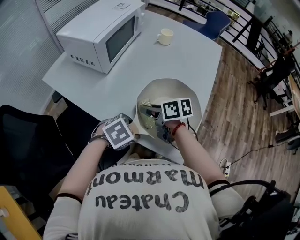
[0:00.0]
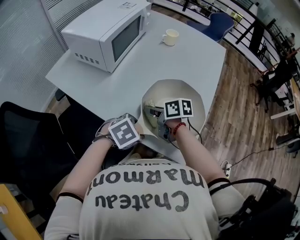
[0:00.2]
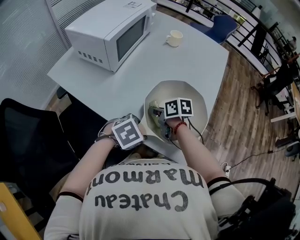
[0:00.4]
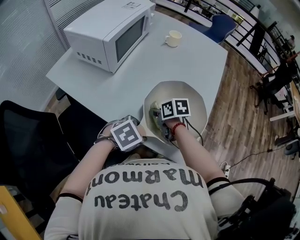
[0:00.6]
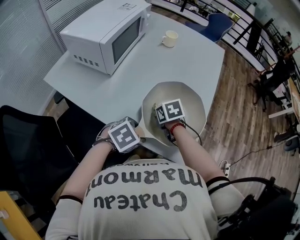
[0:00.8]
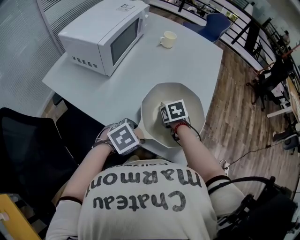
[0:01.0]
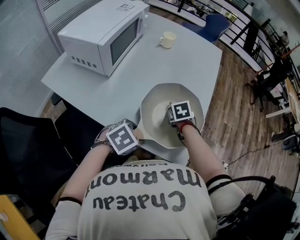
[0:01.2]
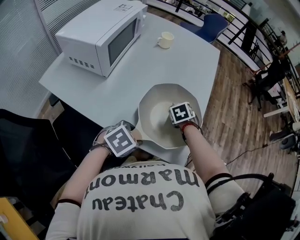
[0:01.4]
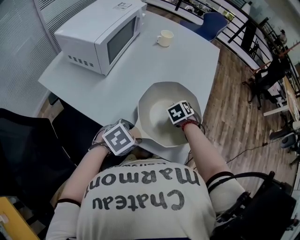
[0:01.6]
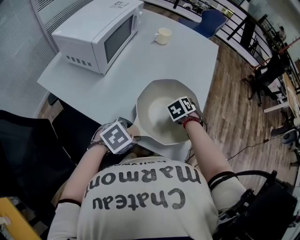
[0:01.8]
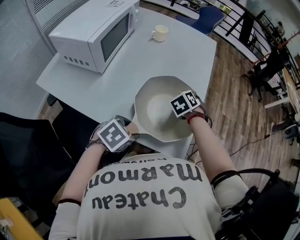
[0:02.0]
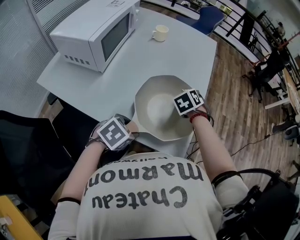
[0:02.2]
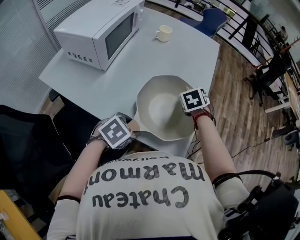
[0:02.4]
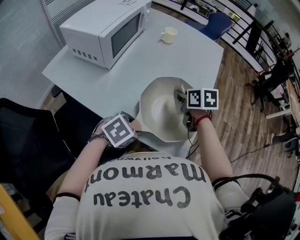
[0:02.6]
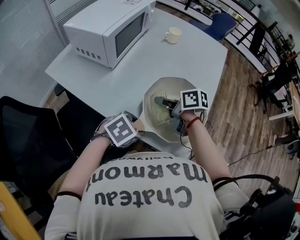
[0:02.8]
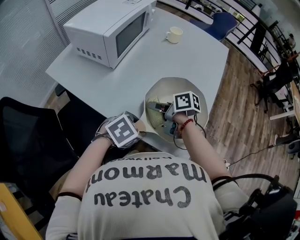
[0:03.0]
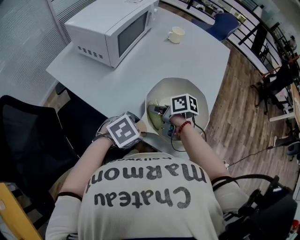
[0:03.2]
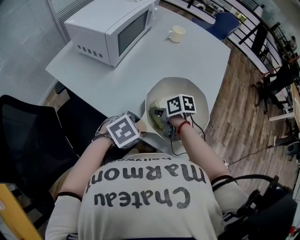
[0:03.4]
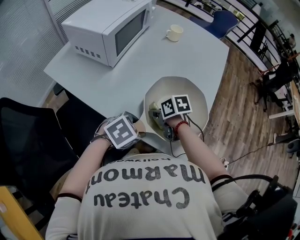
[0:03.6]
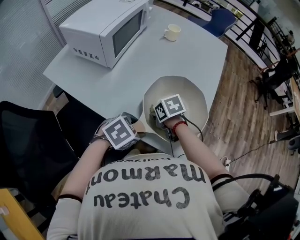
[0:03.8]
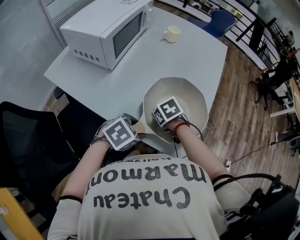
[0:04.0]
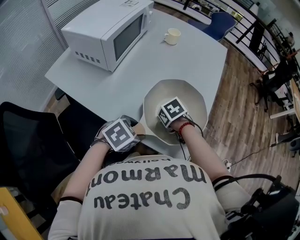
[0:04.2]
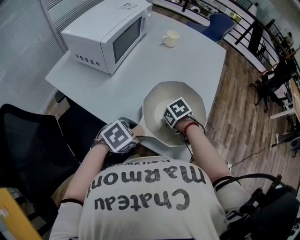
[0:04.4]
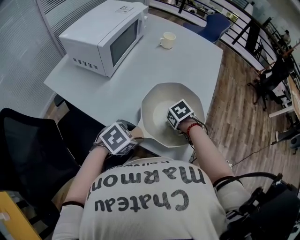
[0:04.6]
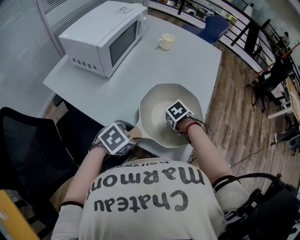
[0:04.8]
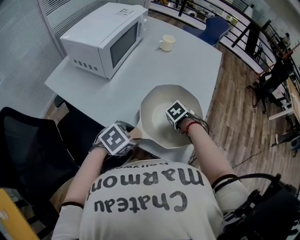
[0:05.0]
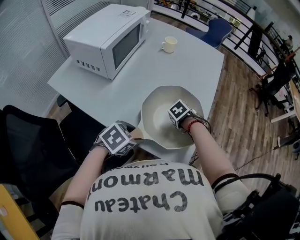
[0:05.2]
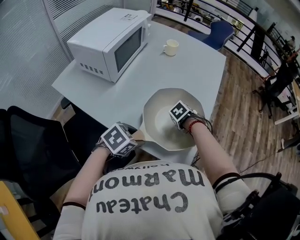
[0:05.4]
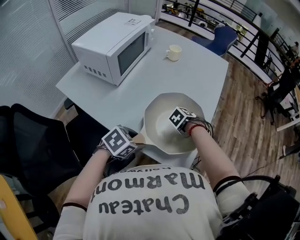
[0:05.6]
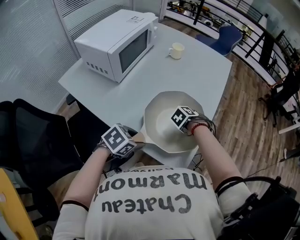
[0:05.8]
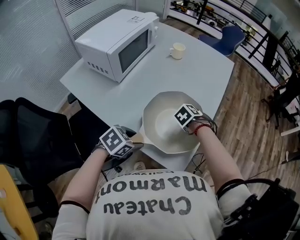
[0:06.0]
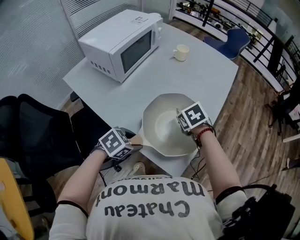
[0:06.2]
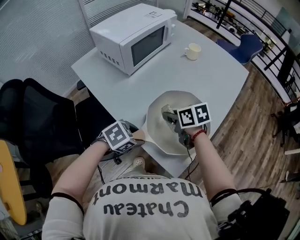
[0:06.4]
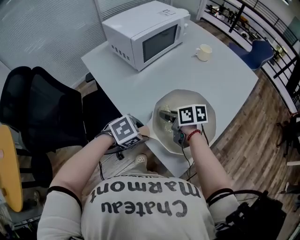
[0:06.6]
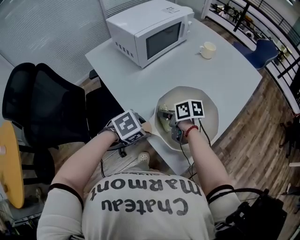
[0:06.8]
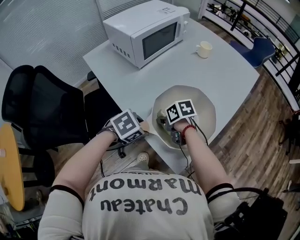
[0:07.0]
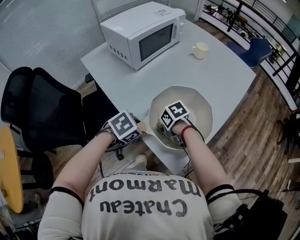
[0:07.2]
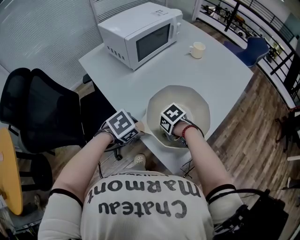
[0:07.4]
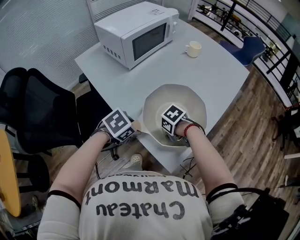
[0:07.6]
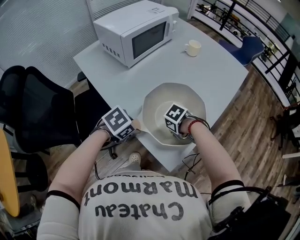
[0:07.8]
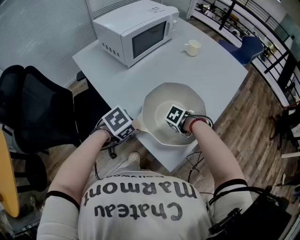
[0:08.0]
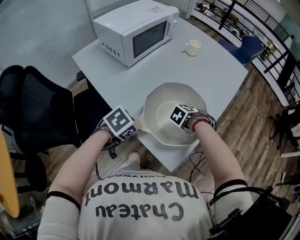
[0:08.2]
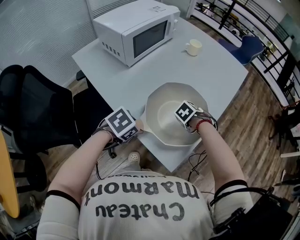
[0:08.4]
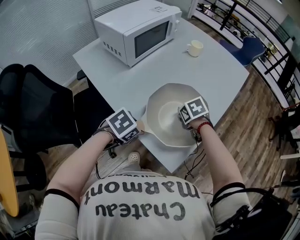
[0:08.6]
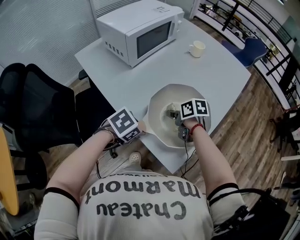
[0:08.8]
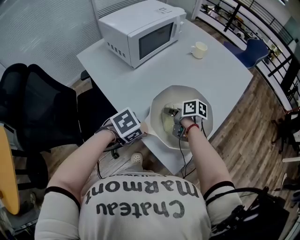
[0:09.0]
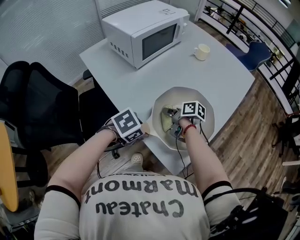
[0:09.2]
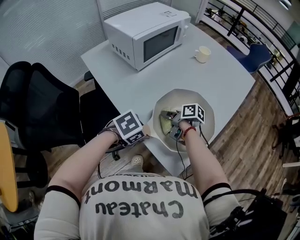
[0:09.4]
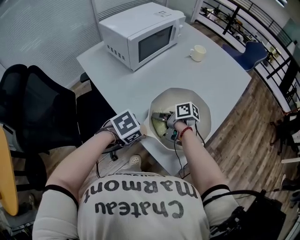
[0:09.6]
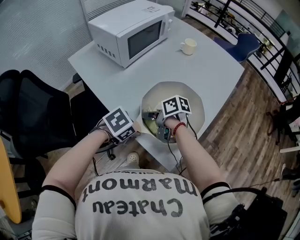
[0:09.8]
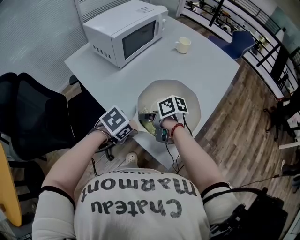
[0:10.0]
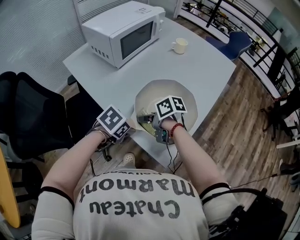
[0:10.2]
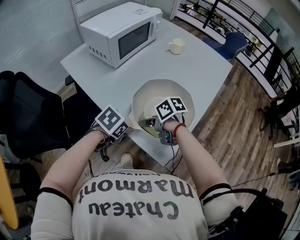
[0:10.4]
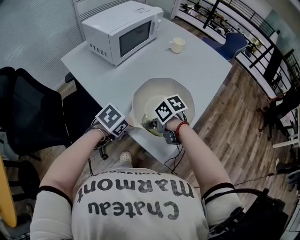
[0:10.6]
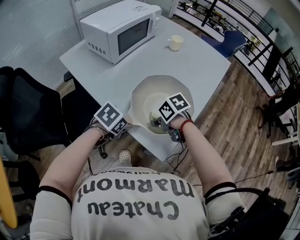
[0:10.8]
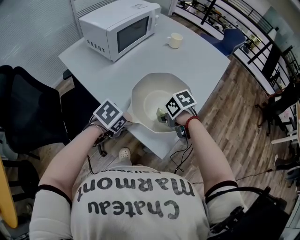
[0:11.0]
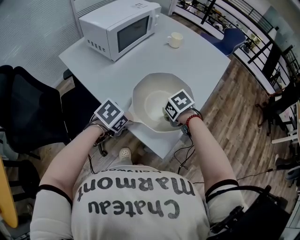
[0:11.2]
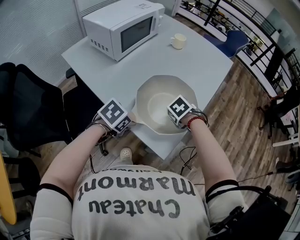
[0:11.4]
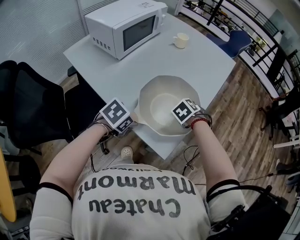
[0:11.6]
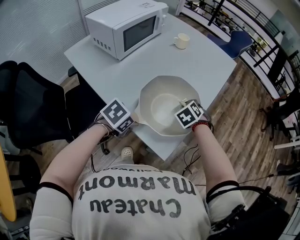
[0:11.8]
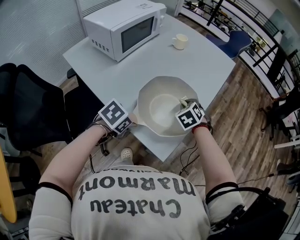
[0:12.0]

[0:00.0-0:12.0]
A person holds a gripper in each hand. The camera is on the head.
0:00.0 to 0:01.6: The right gripper changes place by about 20 cm, and points its fingers approximately 40 degrees further downward.
0:01.6 to 0:03.0: The right gripper ends up approximately 20 cm from where it was, and angles its fingers upward, by about 40 degrees.
0:03.0 to 0:04.4: The right gripper ends up some 15 cm from where it was, and tilts its fingers roughly 50 degrees downward.
0:04.4 to 0:06.0: The right gripper moves some 15 cm, and turns by some 30 degrees.
0:06.0 to 0:07.6: The right gripper moves about 5 cm upward and comes back, and rotates roughly 40 degrees.
0:07.6 to 0:09.0: The right gripper changes place by roughly 15 cm, and angles its fingers upward, by roughly 40 degrees.
0:09.0 to 0:10.4: The right gripper moves roughly 15 cm, and rotates approximately 20 degrees.
0:10.4 to 0:12.0: The right gripper changes place by about 20 cm, and swivels roughly 80 degrees.

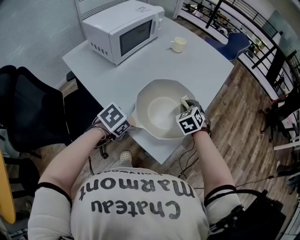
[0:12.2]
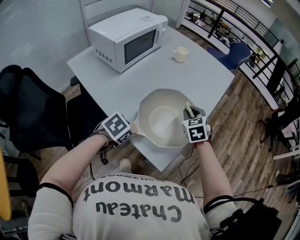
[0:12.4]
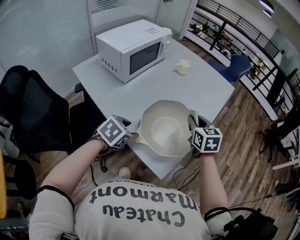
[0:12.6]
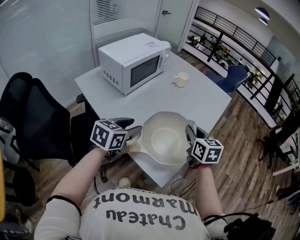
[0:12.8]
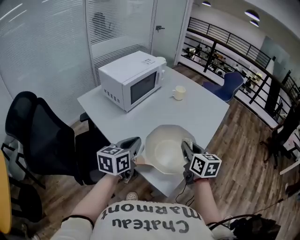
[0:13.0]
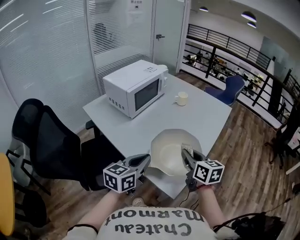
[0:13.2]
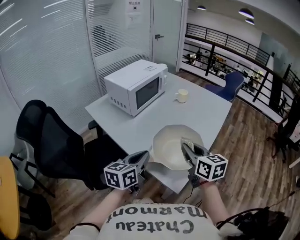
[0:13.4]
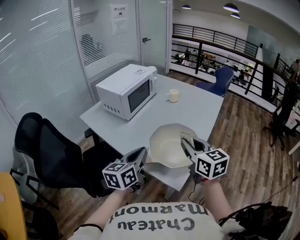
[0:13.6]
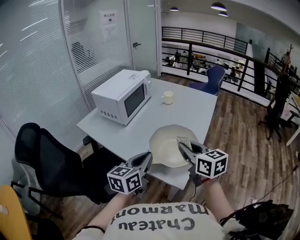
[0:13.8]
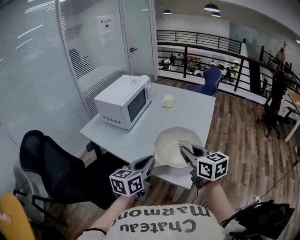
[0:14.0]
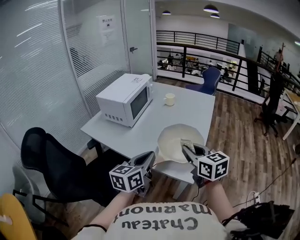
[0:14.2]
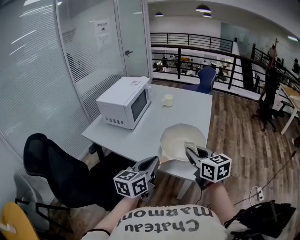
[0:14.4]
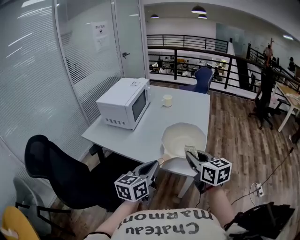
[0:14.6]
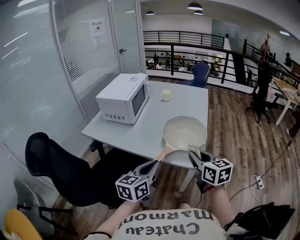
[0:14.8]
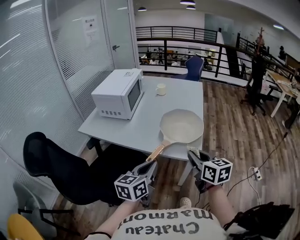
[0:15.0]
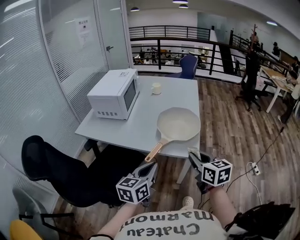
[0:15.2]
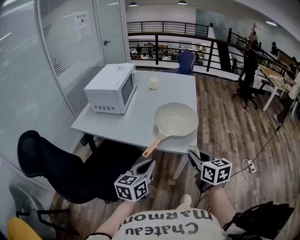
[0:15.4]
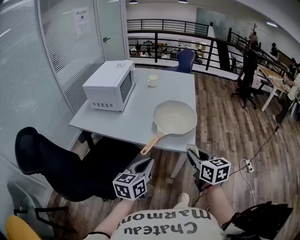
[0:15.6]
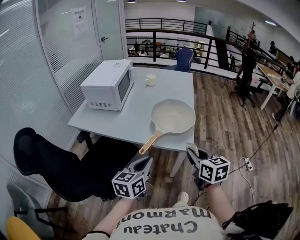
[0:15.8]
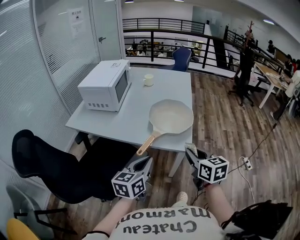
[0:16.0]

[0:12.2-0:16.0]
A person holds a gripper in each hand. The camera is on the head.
0:12.2 to 0:13.4: Both grippers travel together upward, some 15 cm. The left gripper tilts its fingers roughly 50 degrees upward, and closes; the right gripper tips its fingers upward by roughly 30 degrees.
0:13.4 to 0:14.8: The right gripper shifts approximately 15 cm backward, and rotates some 20 degrees. Meanwhile the left gripper heads backward and to the left, covering about 15 cm, and rotates approximately 20 degrees.
0:14.8 to 0:16.0: The left gripper moves roughly 5 cm. The right gripper is displaced backward by about 5 cm.

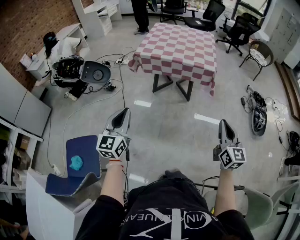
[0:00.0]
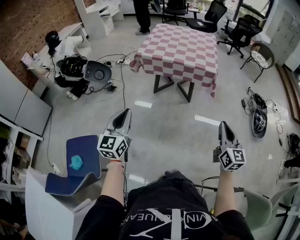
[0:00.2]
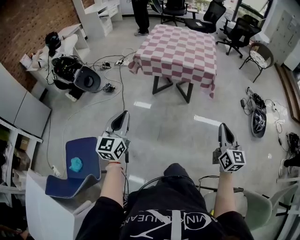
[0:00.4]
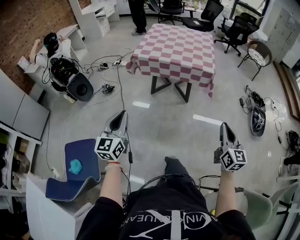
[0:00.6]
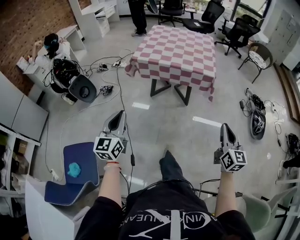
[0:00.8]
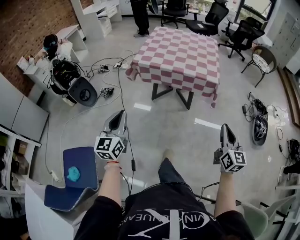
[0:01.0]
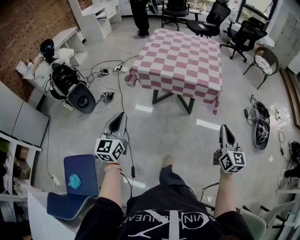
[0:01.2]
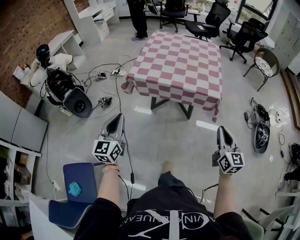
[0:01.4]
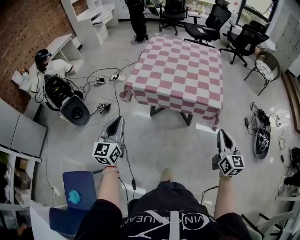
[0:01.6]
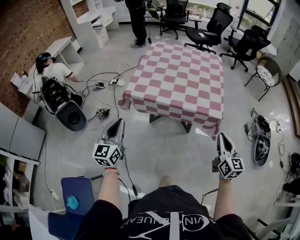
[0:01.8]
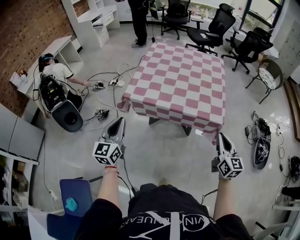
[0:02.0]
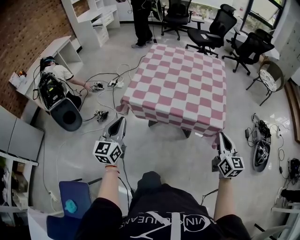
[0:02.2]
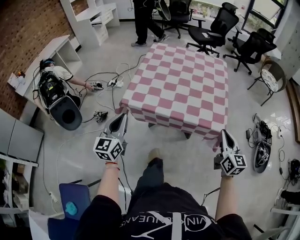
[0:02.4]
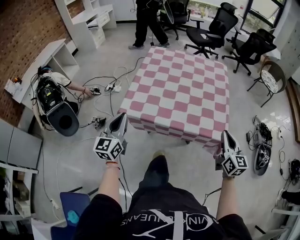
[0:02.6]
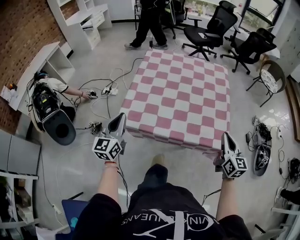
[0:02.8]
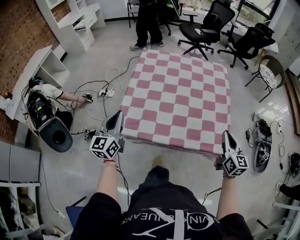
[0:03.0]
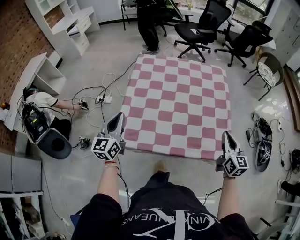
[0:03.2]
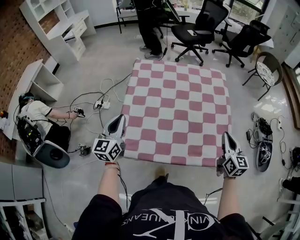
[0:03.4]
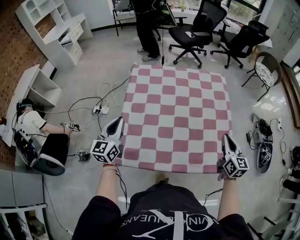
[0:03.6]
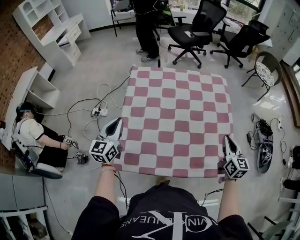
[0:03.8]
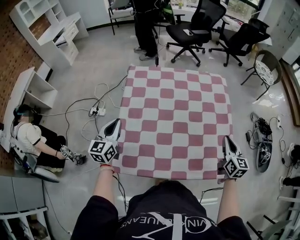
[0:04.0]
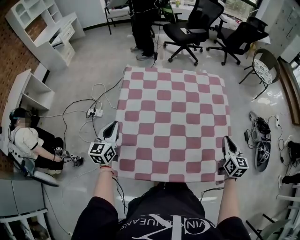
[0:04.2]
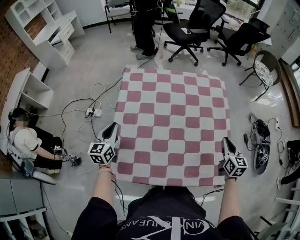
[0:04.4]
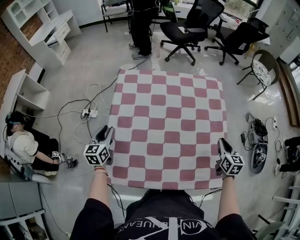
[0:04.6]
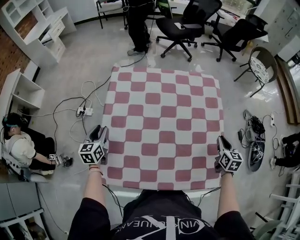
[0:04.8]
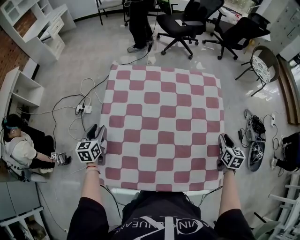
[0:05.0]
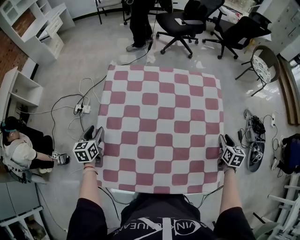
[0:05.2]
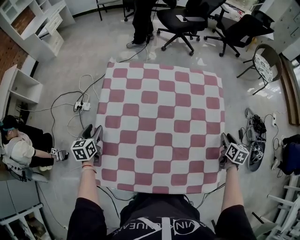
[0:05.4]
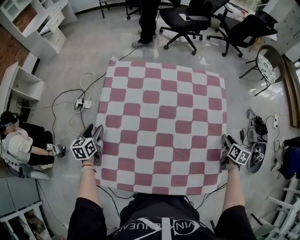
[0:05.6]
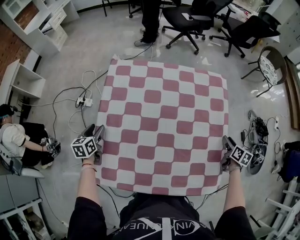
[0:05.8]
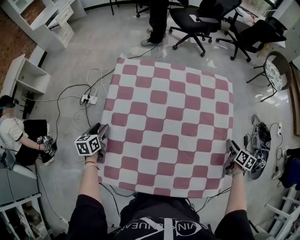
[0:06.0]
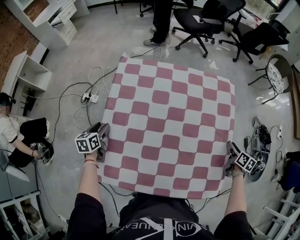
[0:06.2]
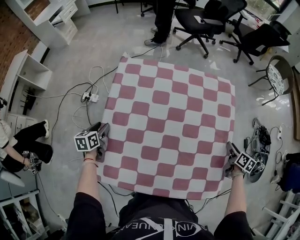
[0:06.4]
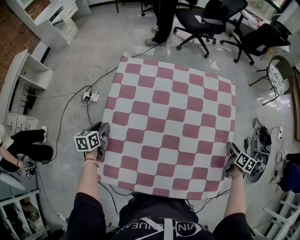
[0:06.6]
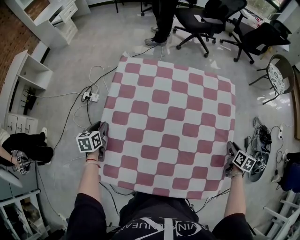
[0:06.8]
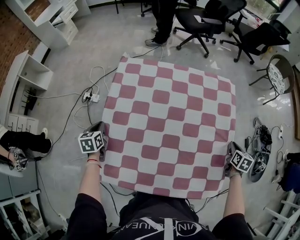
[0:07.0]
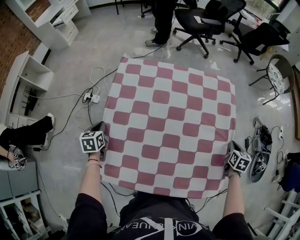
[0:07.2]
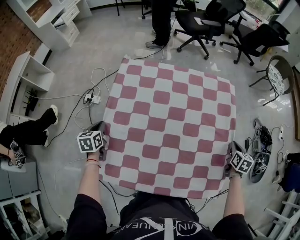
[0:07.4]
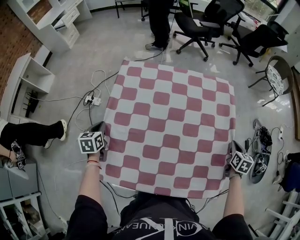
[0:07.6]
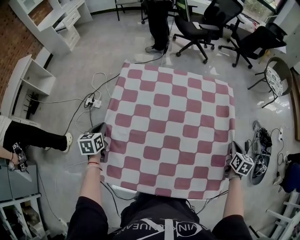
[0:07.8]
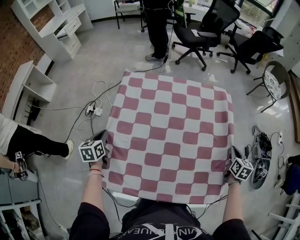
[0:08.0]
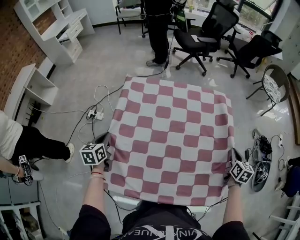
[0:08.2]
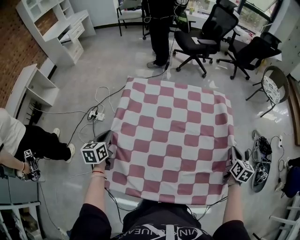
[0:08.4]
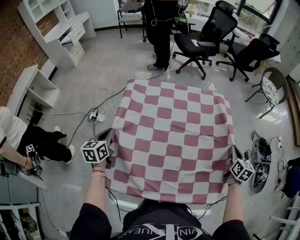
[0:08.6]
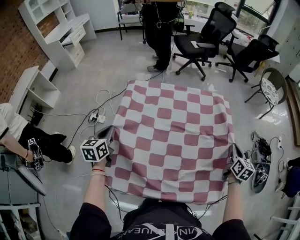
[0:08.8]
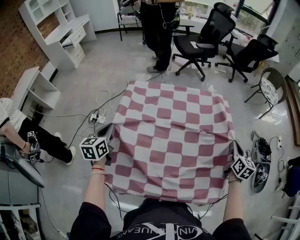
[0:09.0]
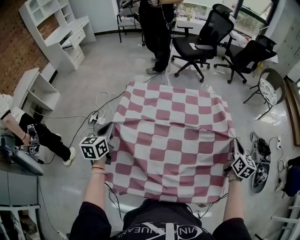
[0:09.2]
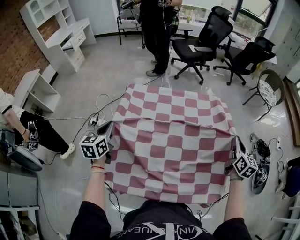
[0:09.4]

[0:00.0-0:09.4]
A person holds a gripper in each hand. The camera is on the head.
0:00.0 to 0:01.6: Both grippers travel together forward, roughly 30 cm.
0:01.6 to 0:03.2: Both grippers travel together forward, some 40 cm.
0:03.2 to 0:04.8: The grippers both shift forward and downward by about 25 cm. The right gripper rotates about 30 degrees. Meanwhile the left gripper changes its angle by roughly 30 degrees, and opens.
0:04.8 to 0:06.2: The left gripper is displaced downward by some 5 cm, and opens its fingers. The right gripper shifts approximately 10 cm to the right and downward, turns by about 30 degrees, and opens up.
0:06.2 to 0:07.8: The right gripper shifts approximately 5 cm upward, turns by approximately 20 degrees, and closes its fingers, while the left gripper closes up.
0:07.8 to 0:09.4: Both grippers move upward, approximately 15 cm. The left gripper changes its angle by about 20 degrees, while the right gripper changes its angle by approximately 30 degrees.
